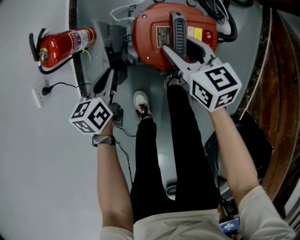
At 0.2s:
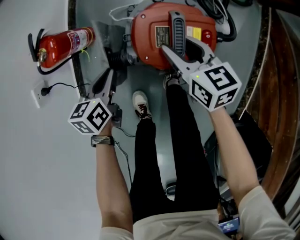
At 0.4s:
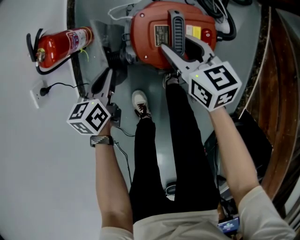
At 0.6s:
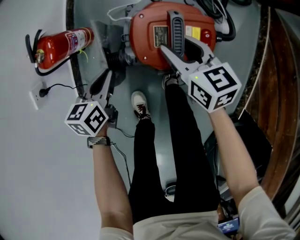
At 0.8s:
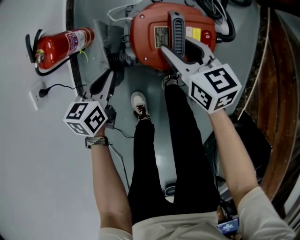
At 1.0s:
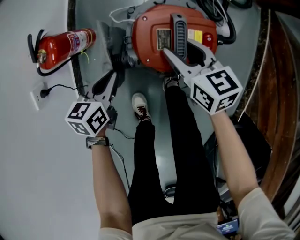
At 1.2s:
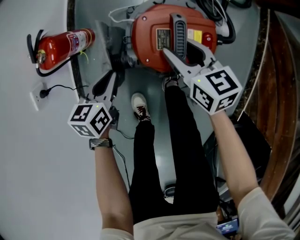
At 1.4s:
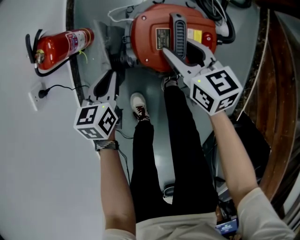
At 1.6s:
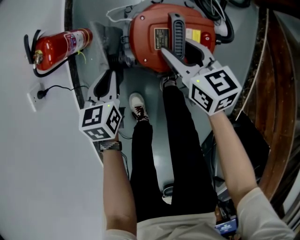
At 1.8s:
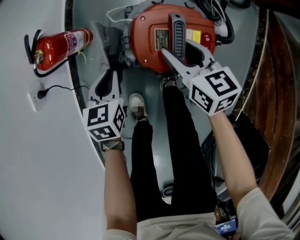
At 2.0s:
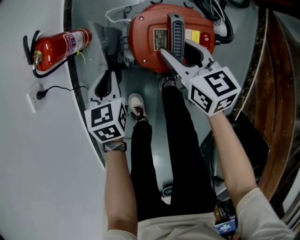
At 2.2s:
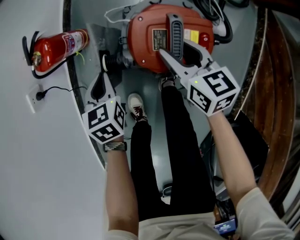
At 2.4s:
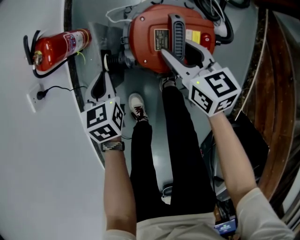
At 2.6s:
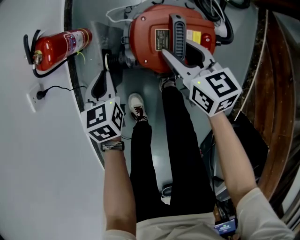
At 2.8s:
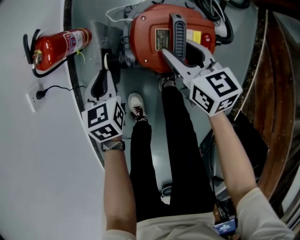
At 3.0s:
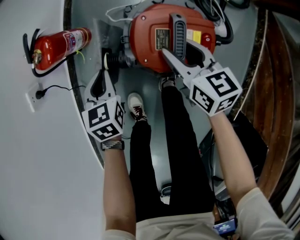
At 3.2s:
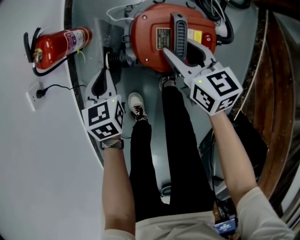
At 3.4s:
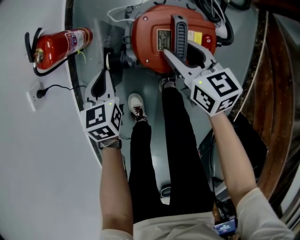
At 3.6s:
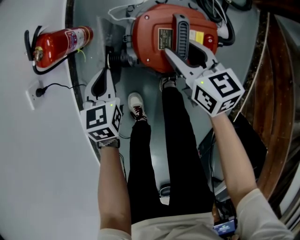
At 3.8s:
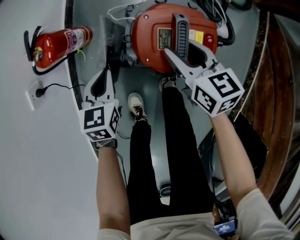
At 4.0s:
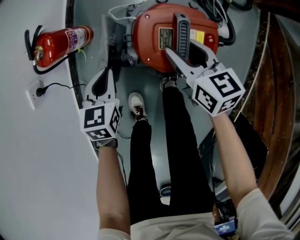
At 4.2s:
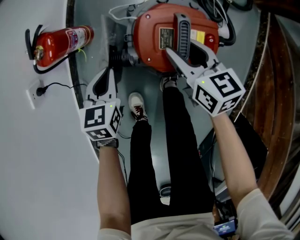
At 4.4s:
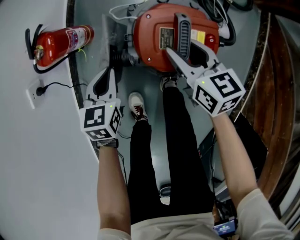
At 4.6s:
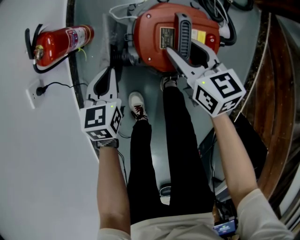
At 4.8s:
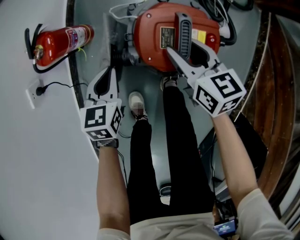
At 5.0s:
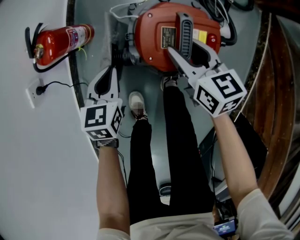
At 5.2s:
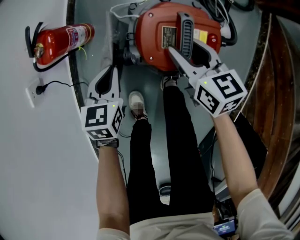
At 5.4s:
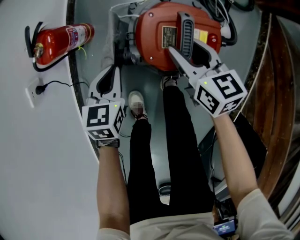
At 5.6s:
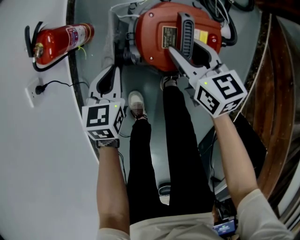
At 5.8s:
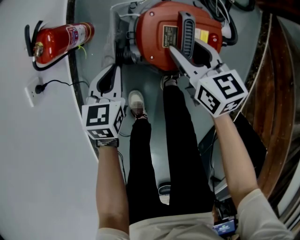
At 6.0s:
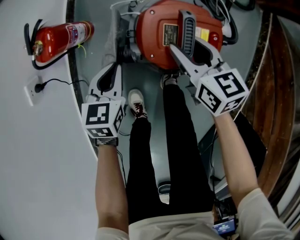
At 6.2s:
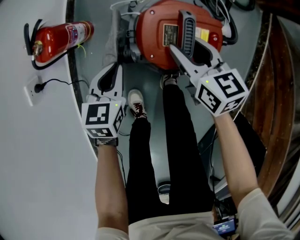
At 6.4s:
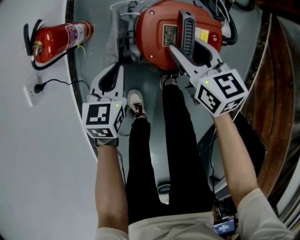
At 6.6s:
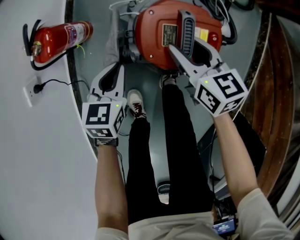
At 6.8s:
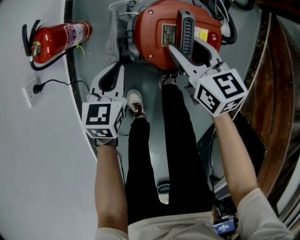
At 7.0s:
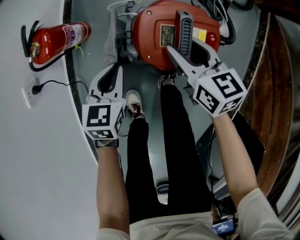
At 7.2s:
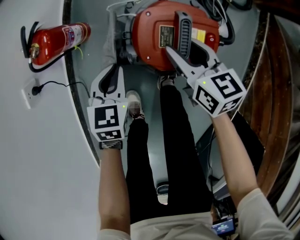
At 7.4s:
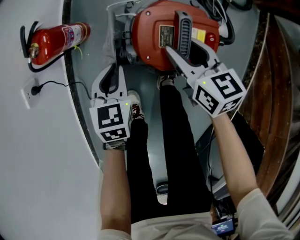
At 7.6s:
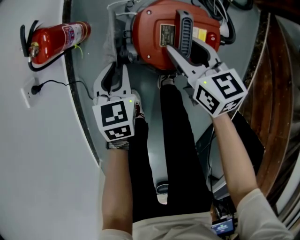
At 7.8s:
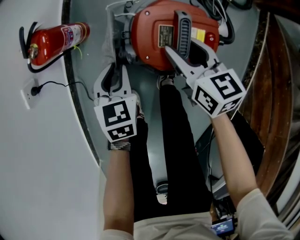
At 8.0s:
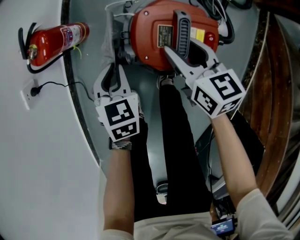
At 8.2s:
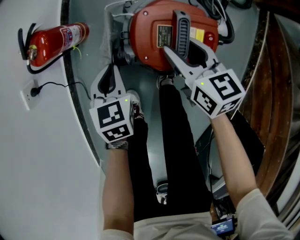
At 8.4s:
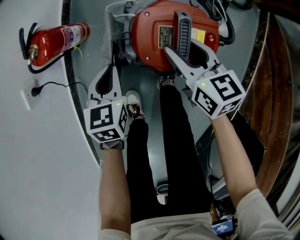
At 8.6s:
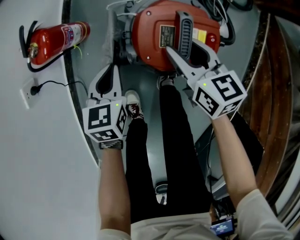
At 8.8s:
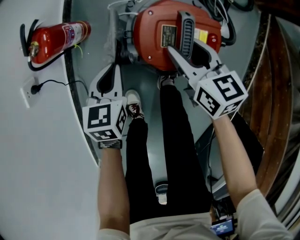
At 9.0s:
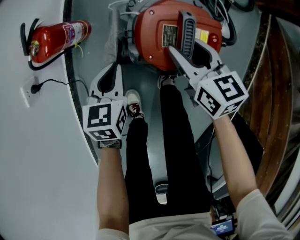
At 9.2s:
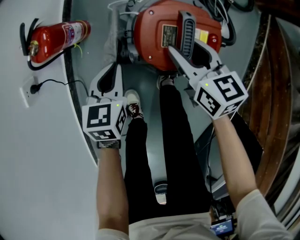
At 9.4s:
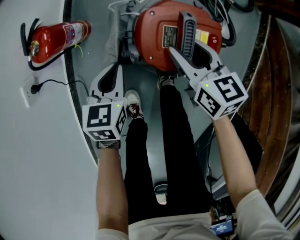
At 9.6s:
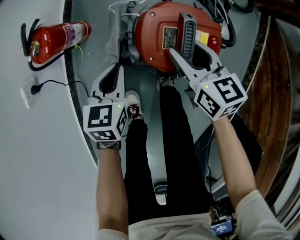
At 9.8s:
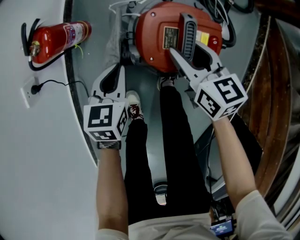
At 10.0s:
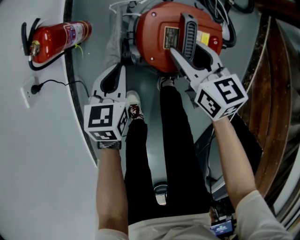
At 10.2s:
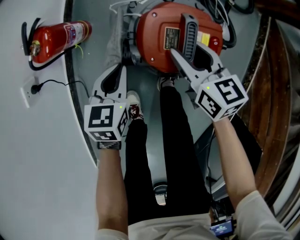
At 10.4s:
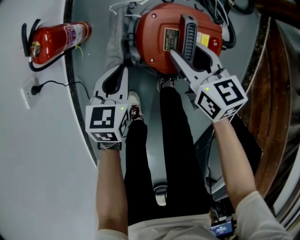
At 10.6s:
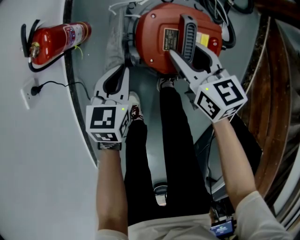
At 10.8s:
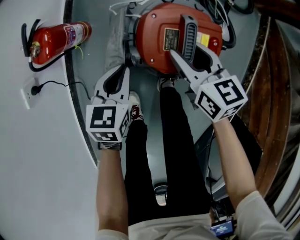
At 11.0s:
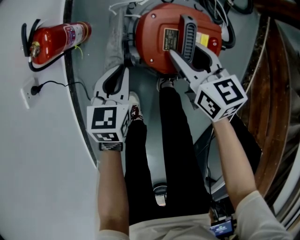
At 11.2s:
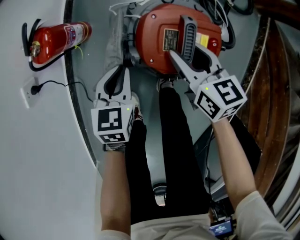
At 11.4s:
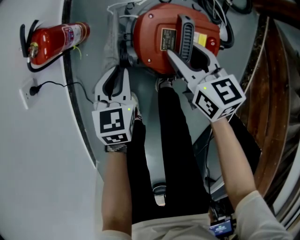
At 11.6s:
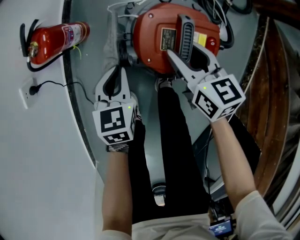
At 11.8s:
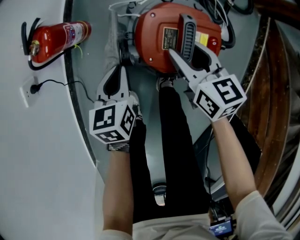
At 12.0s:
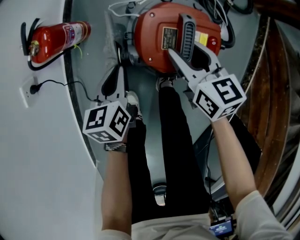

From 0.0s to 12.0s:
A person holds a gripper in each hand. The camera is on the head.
From 0.0s to 1.6s: There are only small adjustments of the grippers.
From 1.6s to 10.4s: There are only small adjustments of the grippers.
From 10.4s to 12.0s: The left gripper turns by approximately 20 degrees.

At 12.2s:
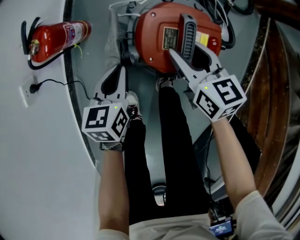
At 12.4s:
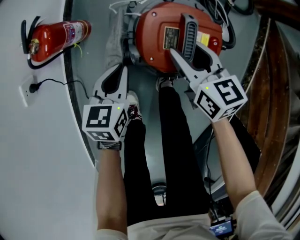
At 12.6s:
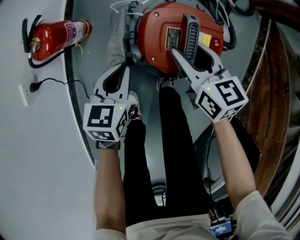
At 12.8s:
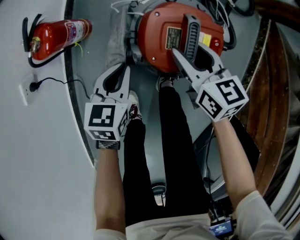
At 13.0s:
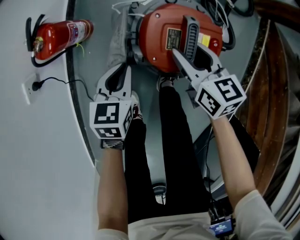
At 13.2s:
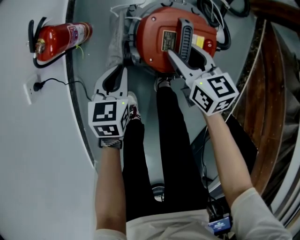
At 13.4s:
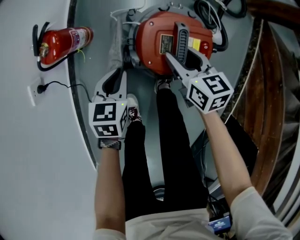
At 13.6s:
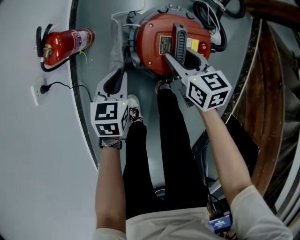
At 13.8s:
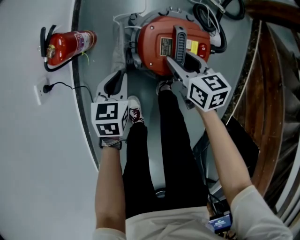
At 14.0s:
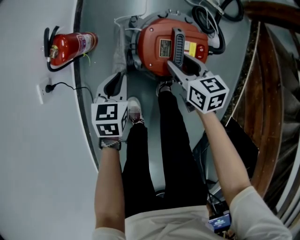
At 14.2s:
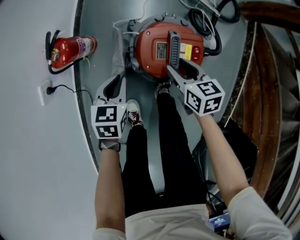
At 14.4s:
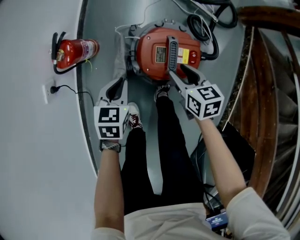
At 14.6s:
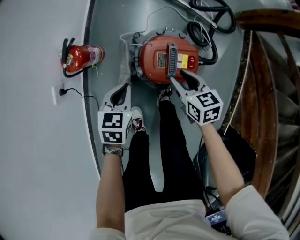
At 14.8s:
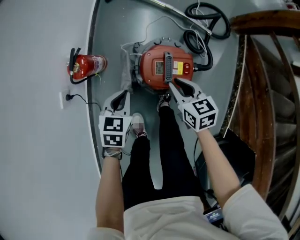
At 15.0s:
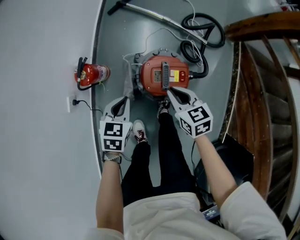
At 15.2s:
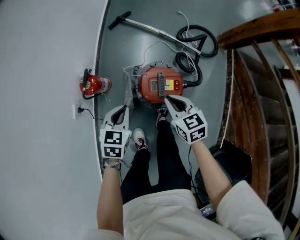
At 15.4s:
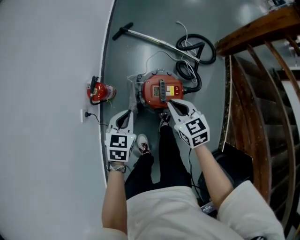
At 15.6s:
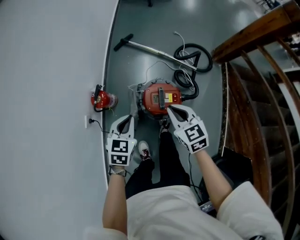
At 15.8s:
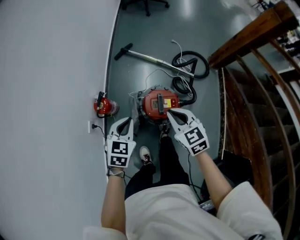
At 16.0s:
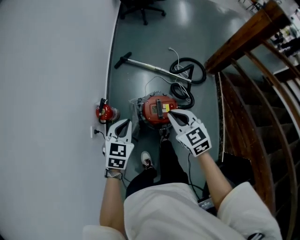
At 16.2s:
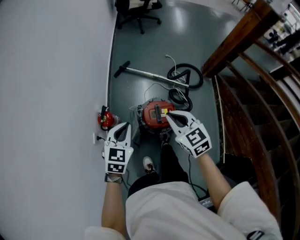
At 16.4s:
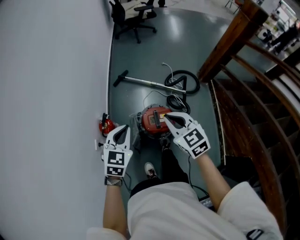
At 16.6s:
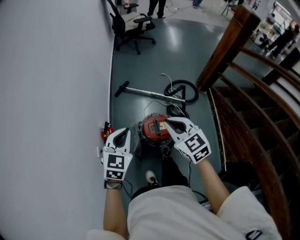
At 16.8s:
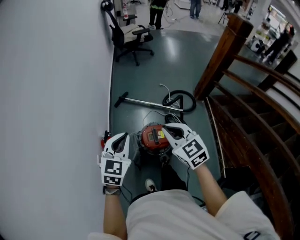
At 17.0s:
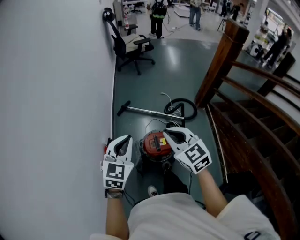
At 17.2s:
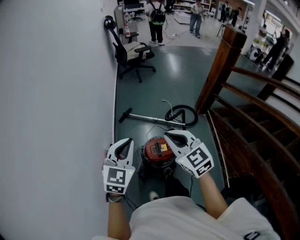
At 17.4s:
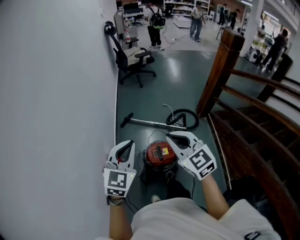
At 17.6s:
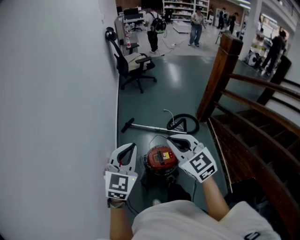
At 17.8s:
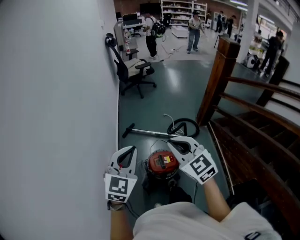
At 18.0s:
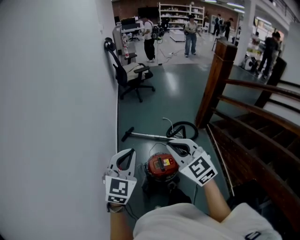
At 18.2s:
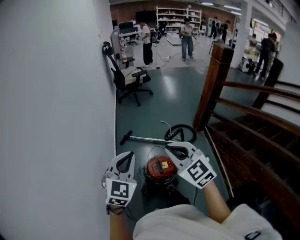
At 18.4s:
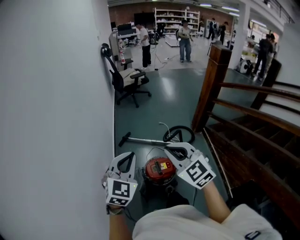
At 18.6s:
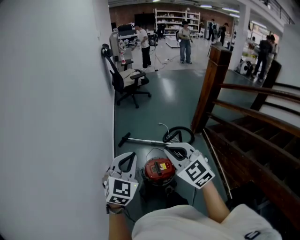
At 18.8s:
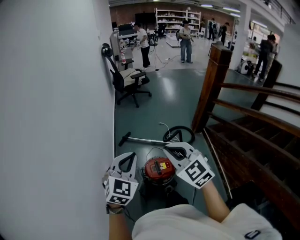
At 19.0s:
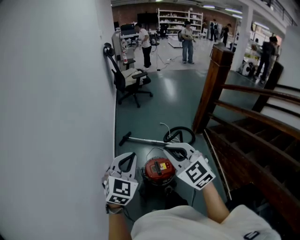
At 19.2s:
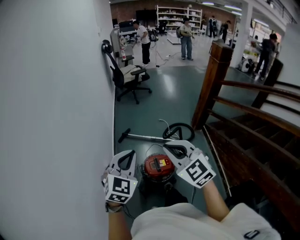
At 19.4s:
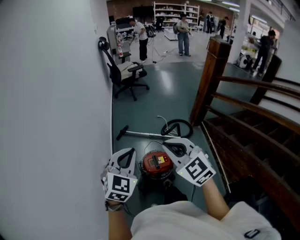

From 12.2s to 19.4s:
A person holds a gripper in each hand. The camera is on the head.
From 12.2s to 13.6s: The grippers stay close to where they were, moving slightly.
From 13.6s to 15.0s: Both grippers travel together upward, approximately 15 cm. The right gripper closes up.
From 15.0s to 16.6s: Both grippers travel together upward, some 40 cm. The left gripper rotates some 30 degrees, while the right gripper changes its angle by roughly 30 degrees.
From 16.6s to 18.0s: The two grippers go approximately 15 cm upward.
From 18.0s to 19.4s: The grippers move only a little.

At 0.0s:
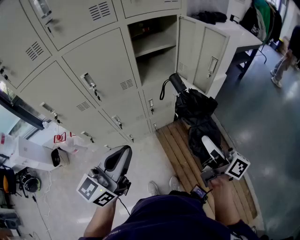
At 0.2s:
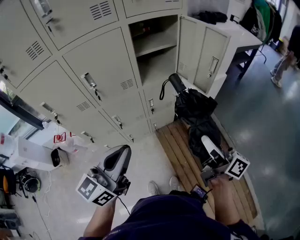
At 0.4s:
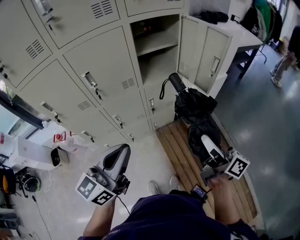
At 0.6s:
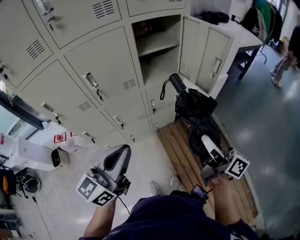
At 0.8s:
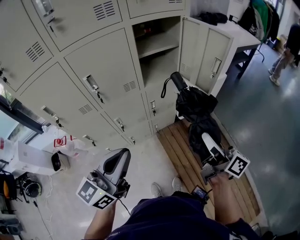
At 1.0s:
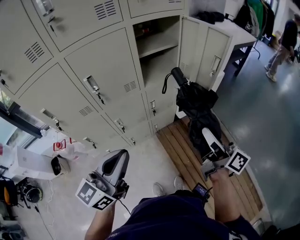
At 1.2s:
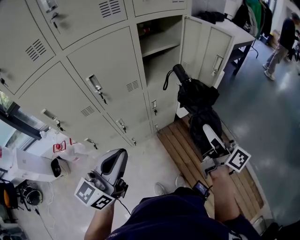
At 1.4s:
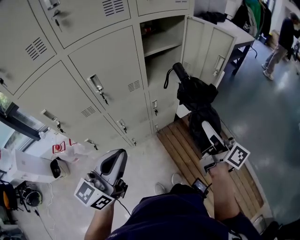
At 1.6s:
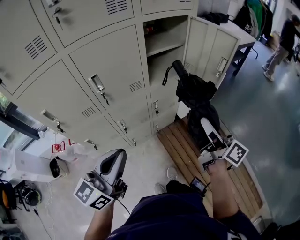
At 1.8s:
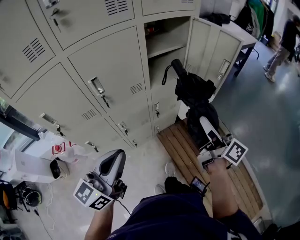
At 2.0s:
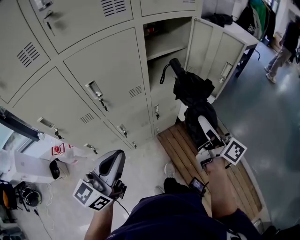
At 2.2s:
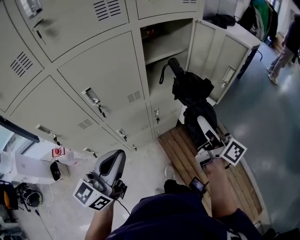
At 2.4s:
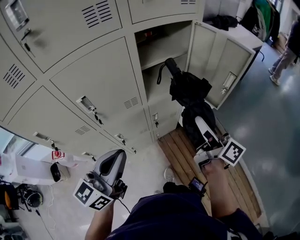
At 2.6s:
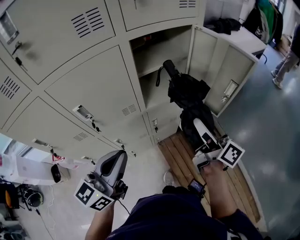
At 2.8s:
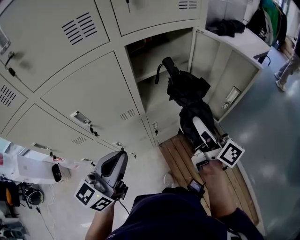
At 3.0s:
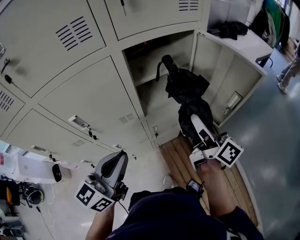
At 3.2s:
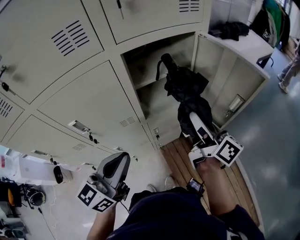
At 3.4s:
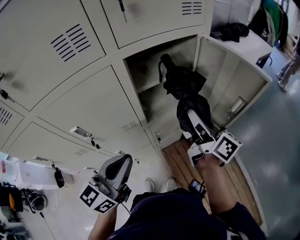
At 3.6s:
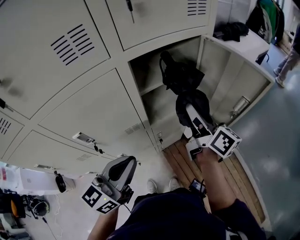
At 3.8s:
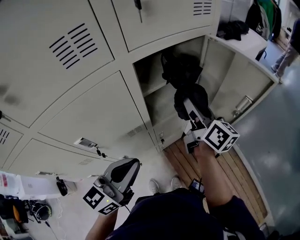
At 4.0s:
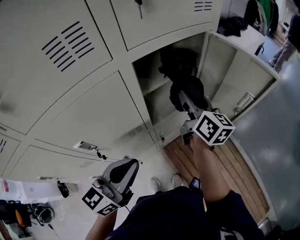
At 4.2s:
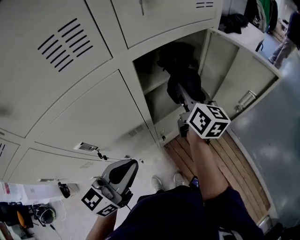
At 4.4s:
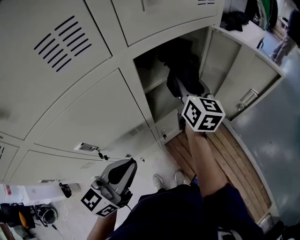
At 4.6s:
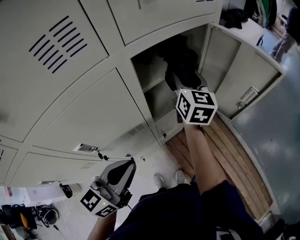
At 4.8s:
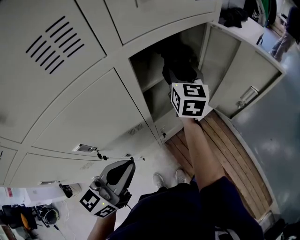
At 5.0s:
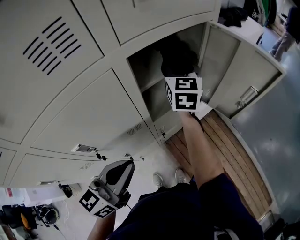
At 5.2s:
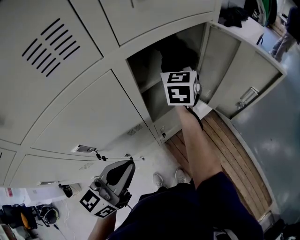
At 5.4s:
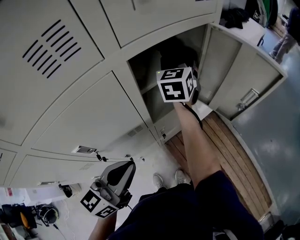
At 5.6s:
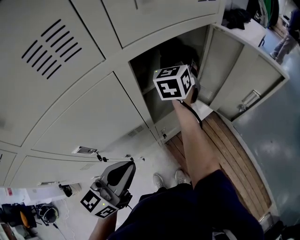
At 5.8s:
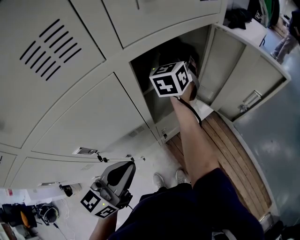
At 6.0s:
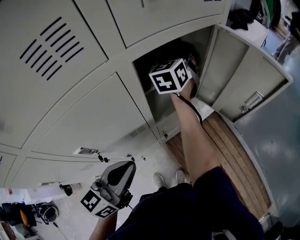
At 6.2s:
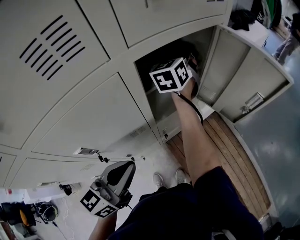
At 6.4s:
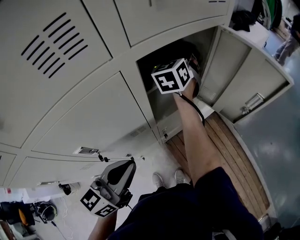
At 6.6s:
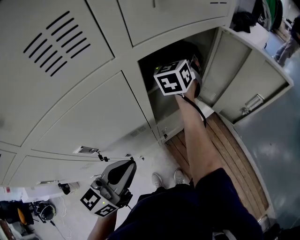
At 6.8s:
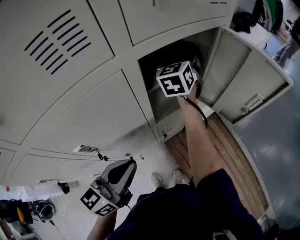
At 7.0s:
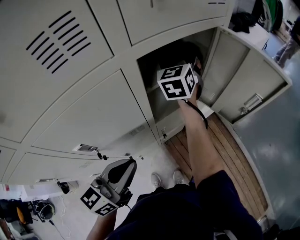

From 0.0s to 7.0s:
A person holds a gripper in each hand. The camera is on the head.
From 0.0s to 1.4s: Both grippers move to the left, approximately 10 cm.
From 1.4s to 2.8s: Both grippers move forward, roughly 20 cm.
From 2.8s to 4.2s: The right gripper moves forward and to the left, roughly 20 cm, and changes its angle by some 40 degrees, while the left gripper shifts about 5 cm forward.
From 4.2s to 5.6s: The right gripper travels forward and to the left by some 10 cm, and rolls counterclockwise, seen from behind, by about 40 degrees.
From 5.6s to 7.0s: The grippers move only a little.
